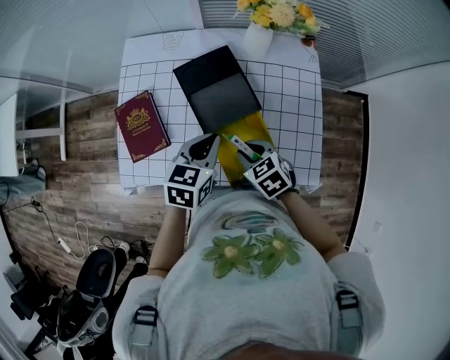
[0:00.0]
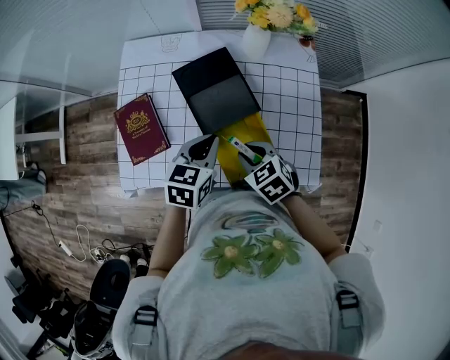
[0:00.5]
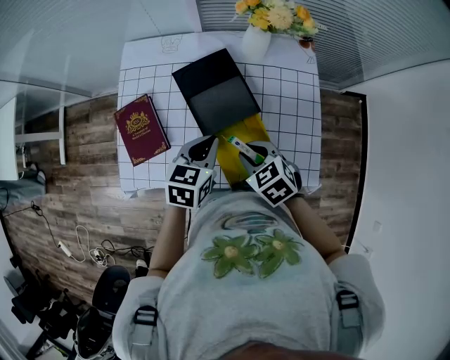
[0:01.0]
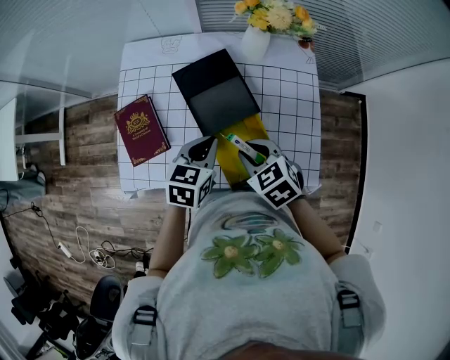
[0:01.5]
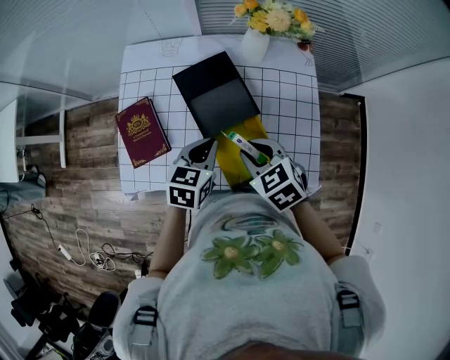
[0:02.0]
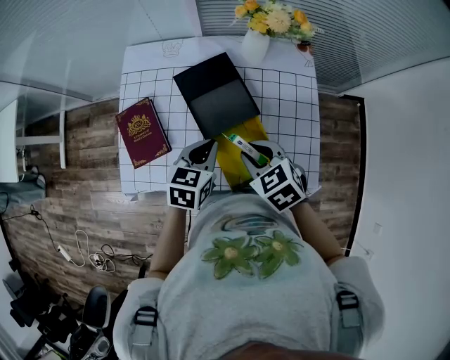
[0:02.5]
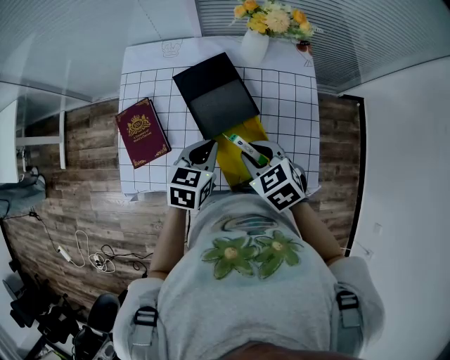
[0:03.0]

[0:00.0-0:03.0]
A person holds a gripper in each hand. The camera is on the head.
0.0 to 1.5 s: The right gripper heads upward, covering about 5 cm.
1.5 to 3.0 s: The grippers stay close to where they were, moving slightly.

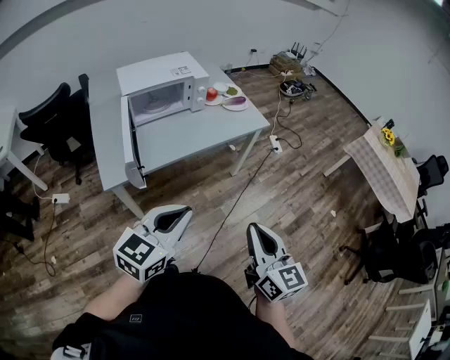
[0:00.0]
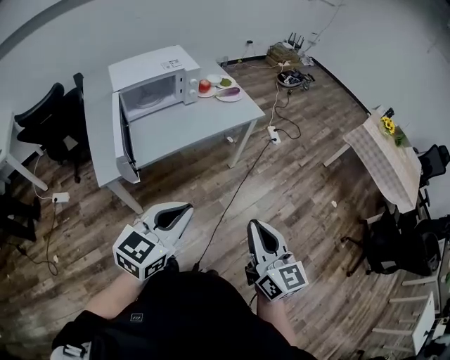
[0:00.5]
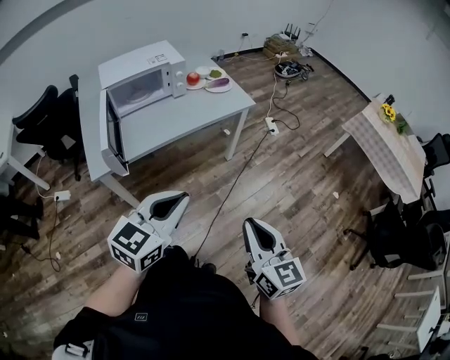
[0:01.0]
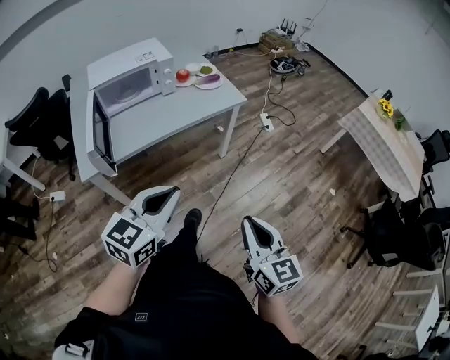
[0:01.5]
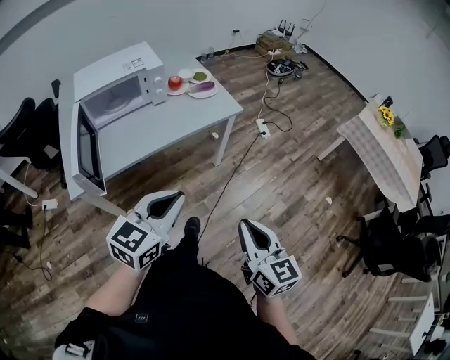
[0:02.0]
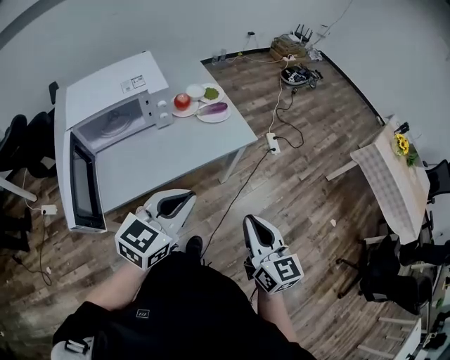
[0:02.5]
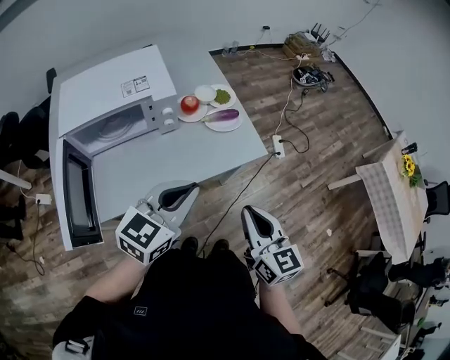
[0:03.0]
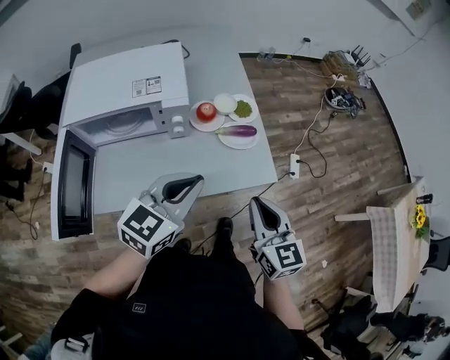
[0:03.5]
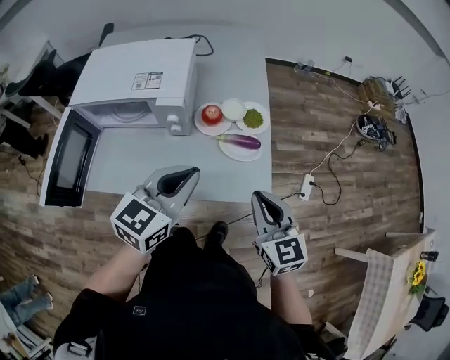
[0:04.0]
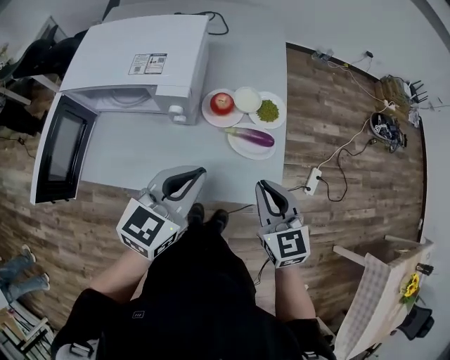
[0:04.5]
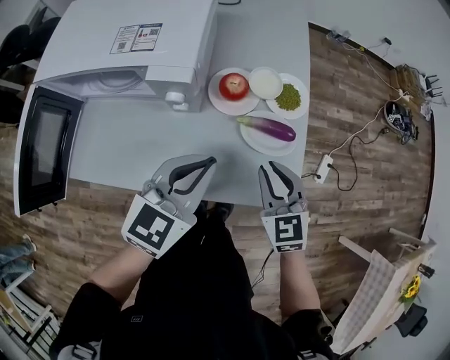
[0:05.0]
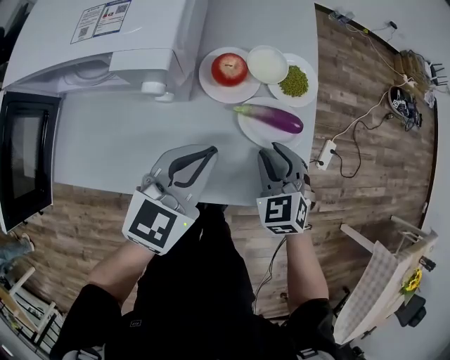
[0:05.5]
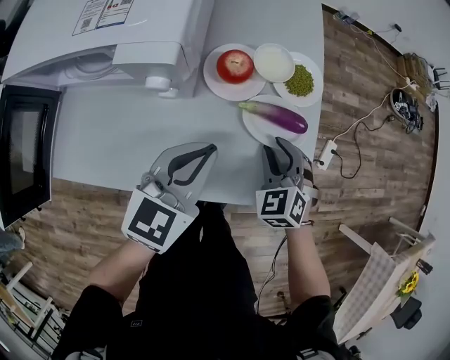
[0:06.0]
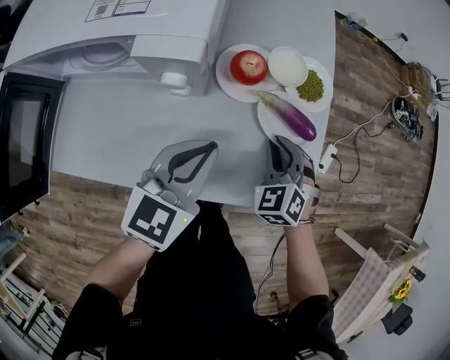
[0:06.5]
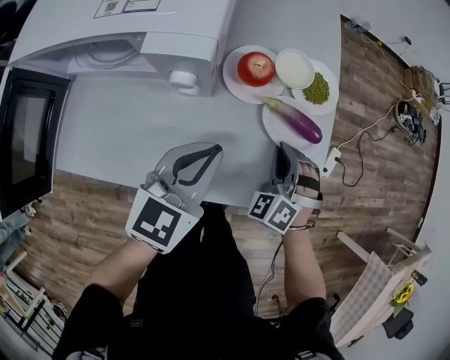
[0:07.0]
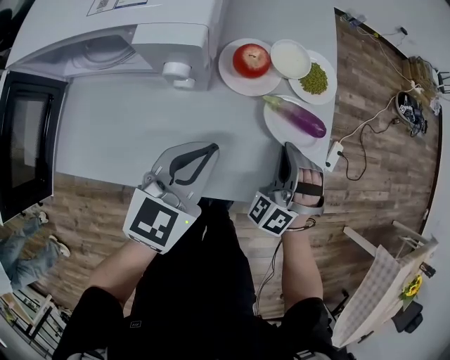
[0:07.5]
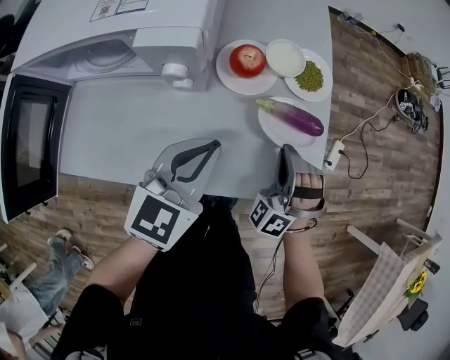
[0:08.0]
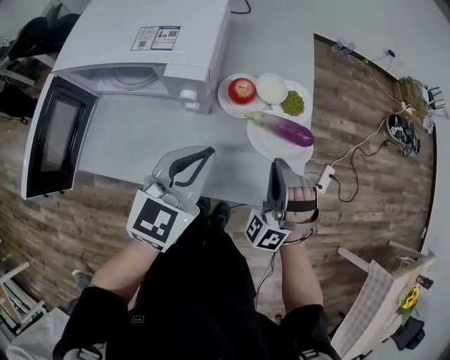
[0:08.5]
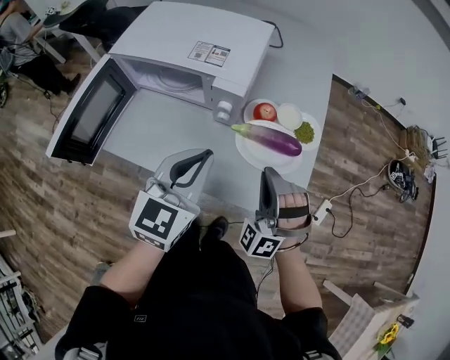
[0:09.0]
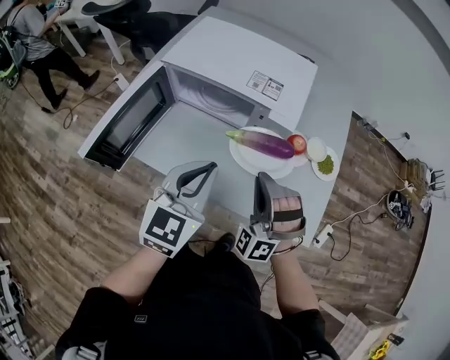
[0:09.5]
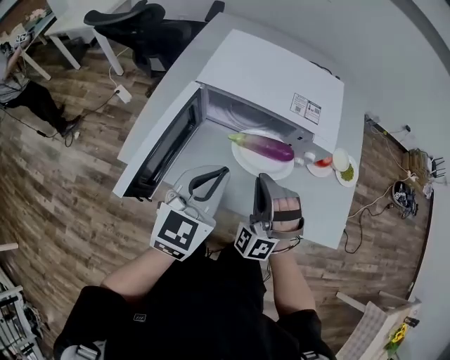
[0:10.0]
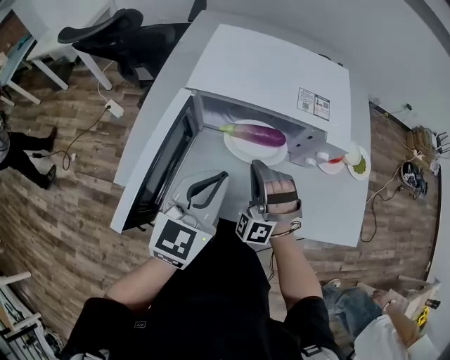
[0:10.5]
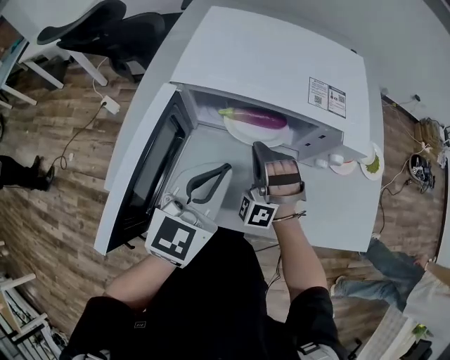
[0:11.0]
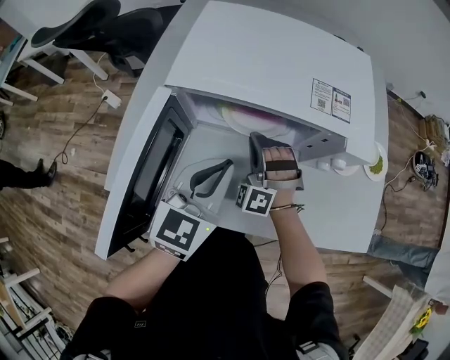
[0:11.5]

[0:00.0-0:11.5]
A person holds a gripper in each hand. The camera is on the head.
0.0 to 2.0 s: The left gripper moves to the right and forward, roughly 20 cm; the right gripper travels to the right, forward and downward by about 20 cm.
2.0 to 4.0 s: The pair of grippers is taken some 50 cm. The right gripper turns by approximately 40 degrees; the left gripper turns by roughly 30 degrees.
4.0 to 6.0 s: The grippers both shift downward and forward by some 25 cm. The right gripper swivels roughly 40 degrees, and opens.
6.0 to 7.5 s: The right gripper turns by some 40 degrees, and closes its fingers.
7.5 to 9.5 s: The right gripper moves some 35 cm, and turns by about 30 degrees. Meanwhile the left gripper heads upward, covering approximately 20 cm, and swivels approximately 30 degrees.
9.5 to 11.5 s: The left gripper travels to the left, forward and downward by about 20 cm. The right gripper is displaced to the left, downward and forward by about 30 cm.

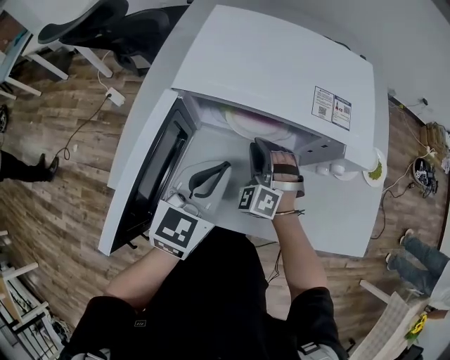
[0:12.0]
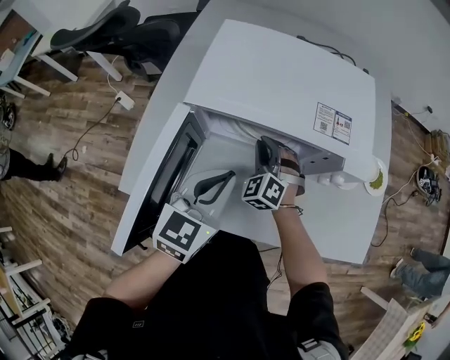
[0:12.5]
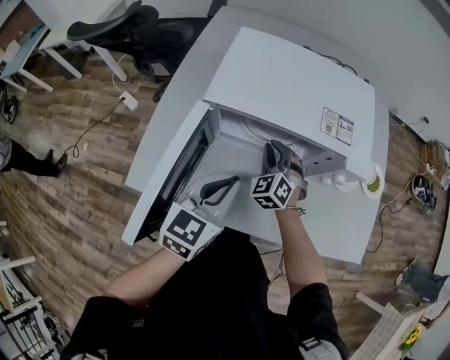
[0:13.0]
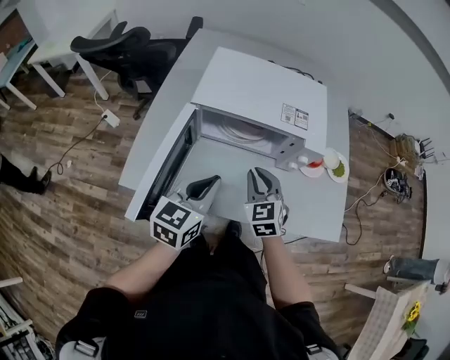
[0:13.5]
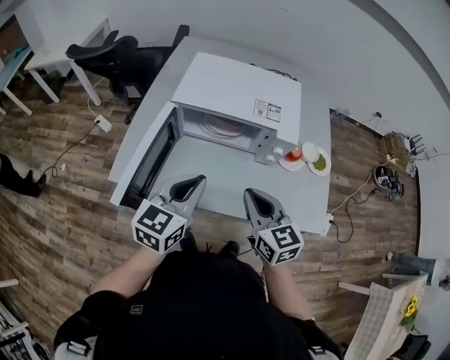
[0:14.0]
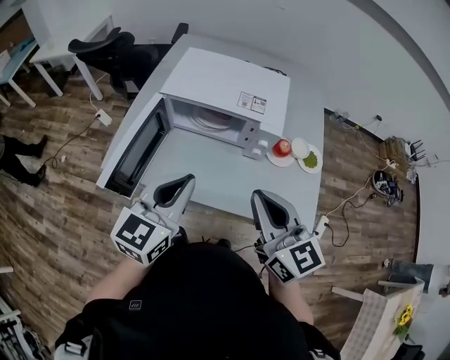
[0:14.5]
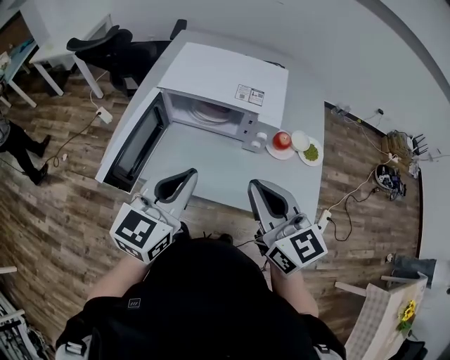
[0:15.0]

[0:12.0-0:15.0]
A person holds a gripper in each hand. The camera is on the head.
12.0 to 13.5 s: The left gripper is displaced backward and upward by approximately 10 cm; the right gripper goes about 15 cm upward and backward, and rotates around the line of its fingers by approximately 40 degrees, clockwise from behind.
13.5 to 15.0 s: The right gripper is displaced upward, backward and to the right by approximately 30 cm, and swivels approximately 40 degrees. Meanwhile the left gripper moves upward, backward and to the right, roughly 20 cm.

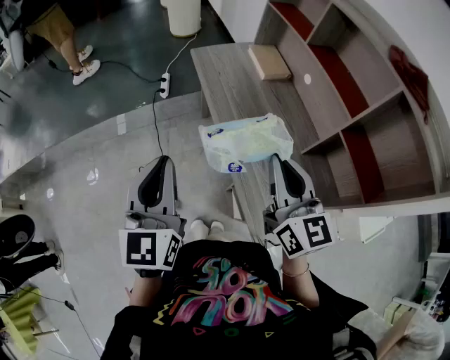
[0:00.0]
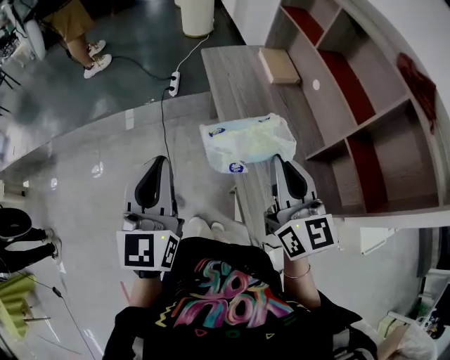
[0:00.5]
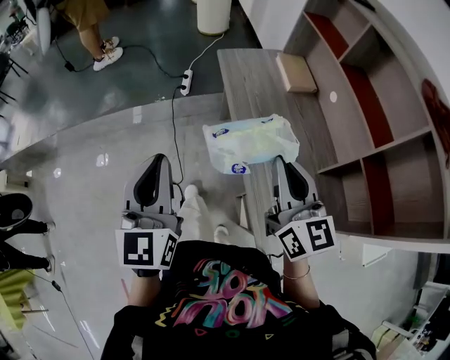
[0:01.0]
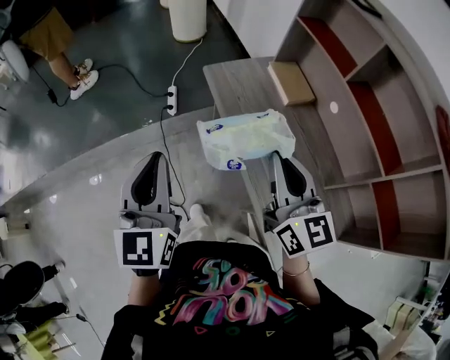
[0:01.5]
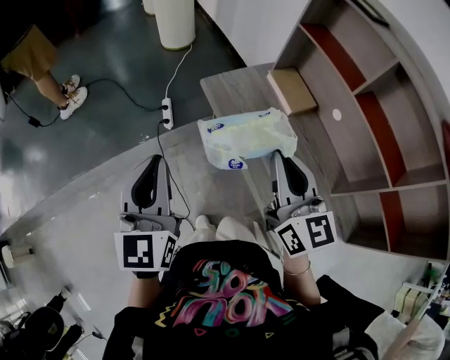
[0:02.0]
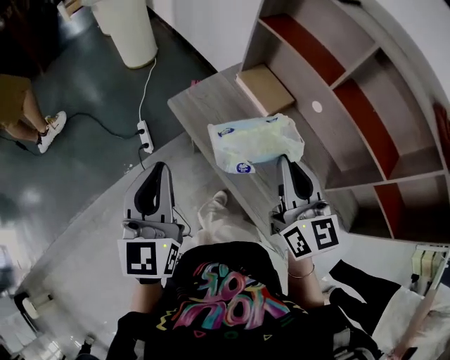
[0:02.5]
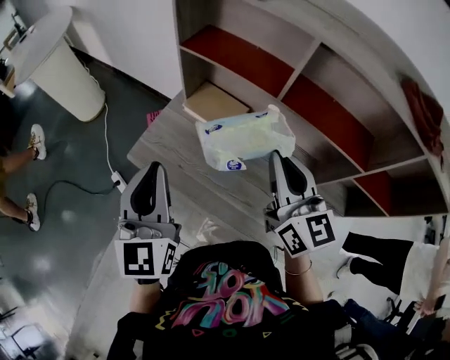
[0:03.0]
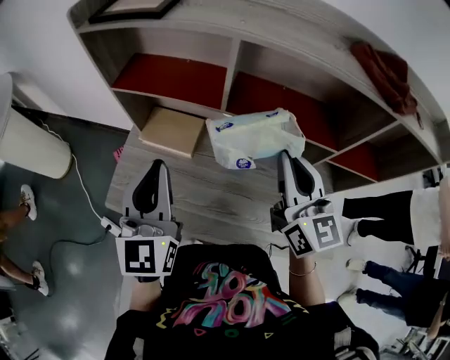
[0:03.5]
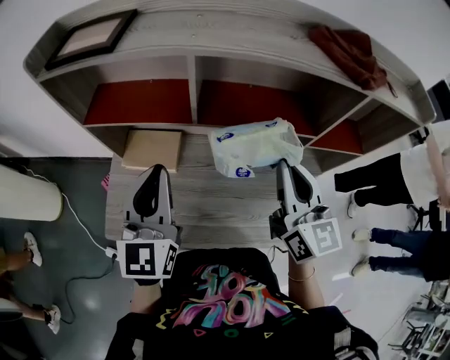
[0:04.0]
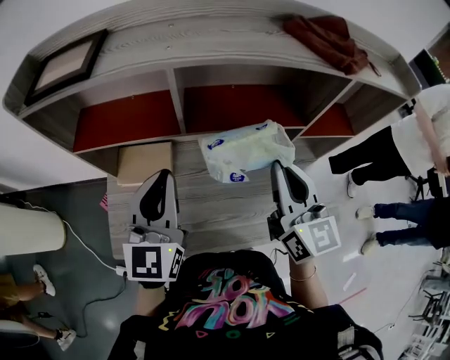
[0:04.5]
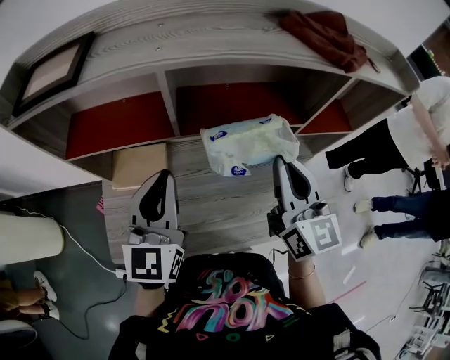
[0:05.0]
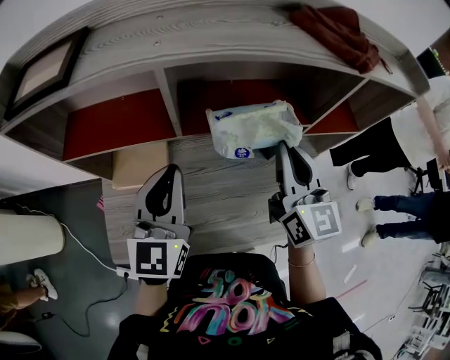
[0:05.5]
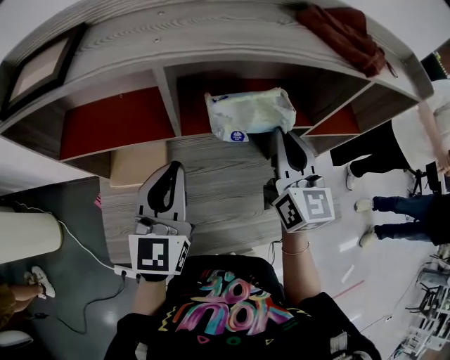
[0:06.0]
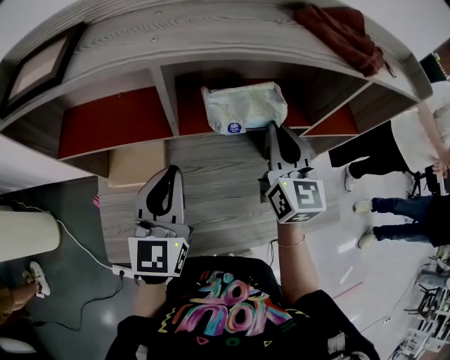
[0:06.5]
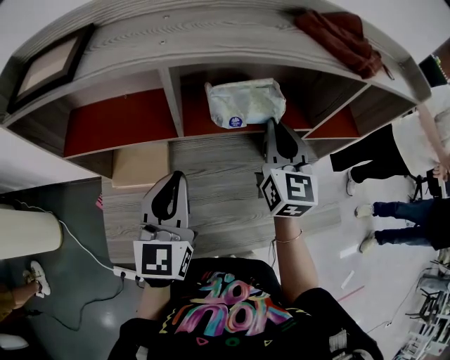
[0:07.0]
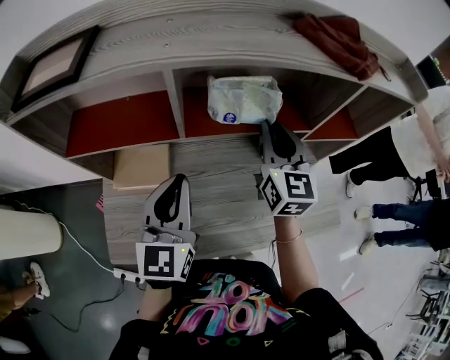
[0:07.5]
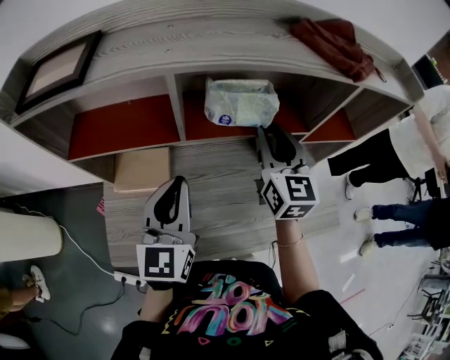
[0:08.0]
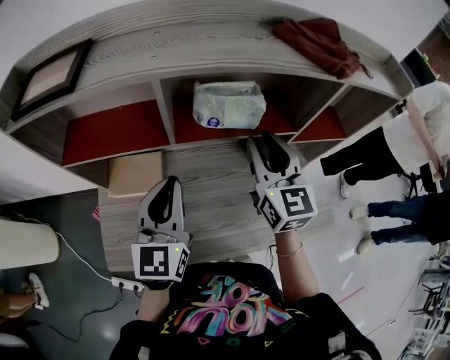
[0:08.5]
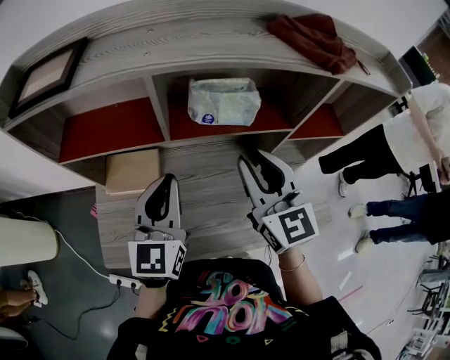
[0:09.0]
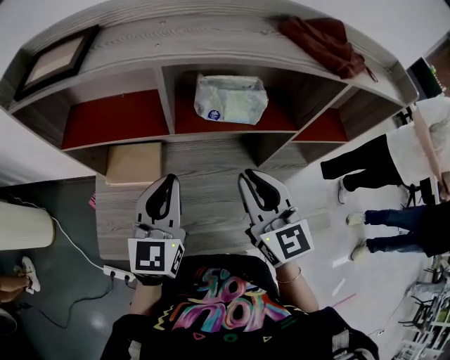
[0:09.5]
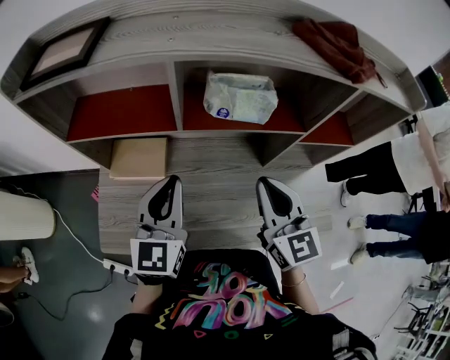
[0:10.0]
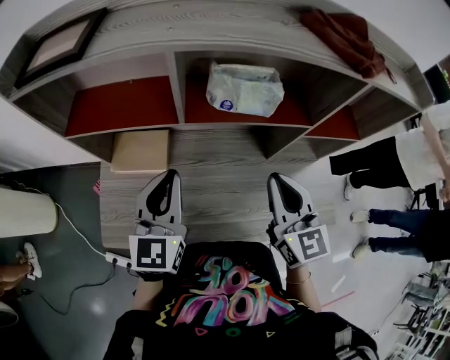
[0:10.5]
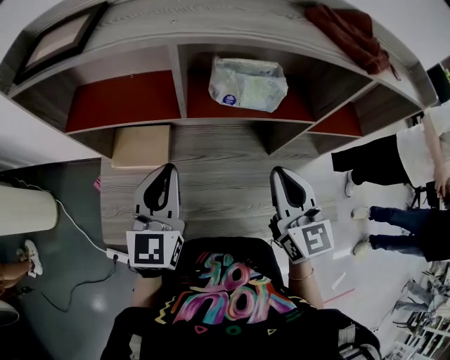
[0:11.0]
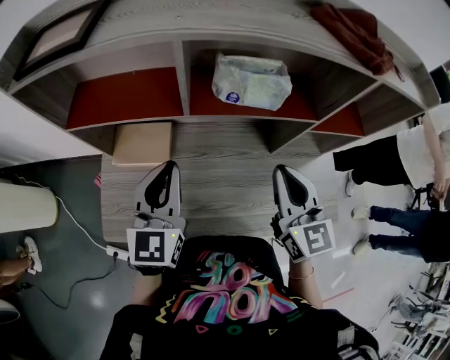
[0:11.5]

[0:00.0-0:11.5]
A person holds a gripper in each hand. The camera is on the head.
0.0 to 2.0 s: Both grippers travel together forward, roughly 35 cm.
2.0 to 4.0 s: The right gripper moves roughly 15 cm, and turns by roughly 30 degrees. The left gripper ends up some 20 cm from where it was, and turns by approximately 30 degrees.
4.0 to 6.0 s: Both grippers move forward, some 5 cm.
6.0 to 7.5 s: There are only small adjustments of the grippers.
7.5 to 9.5 s: The right gripper travels backward by roughly 10 cm.
9.5 to 11.5 s: The right gripper changes place by some 5 cm.
